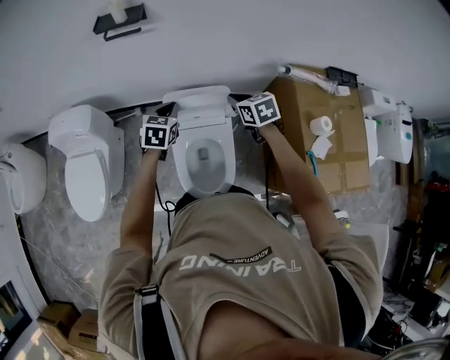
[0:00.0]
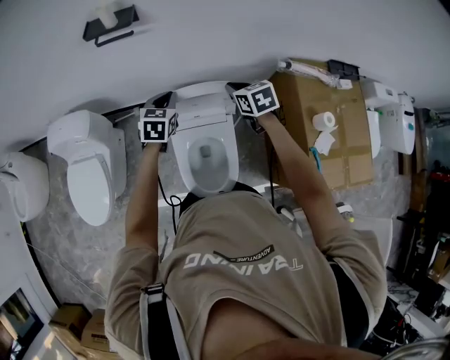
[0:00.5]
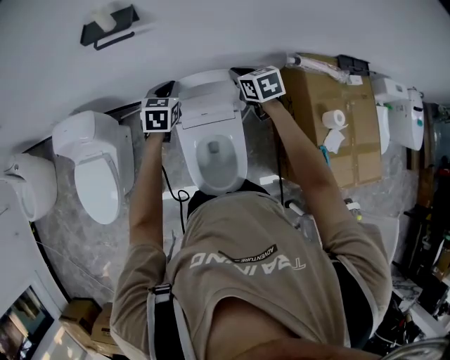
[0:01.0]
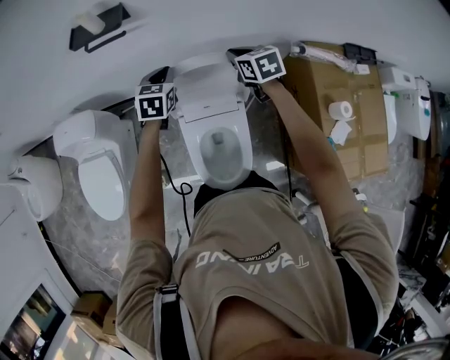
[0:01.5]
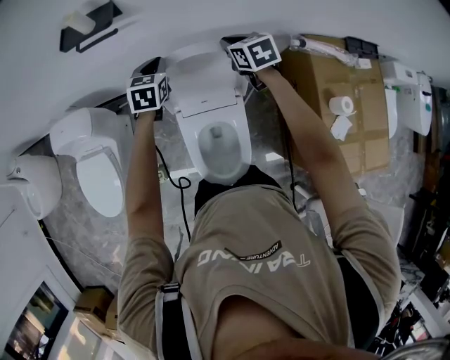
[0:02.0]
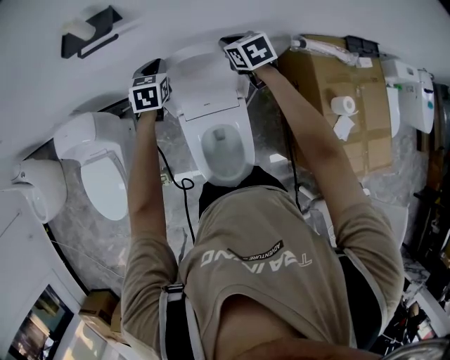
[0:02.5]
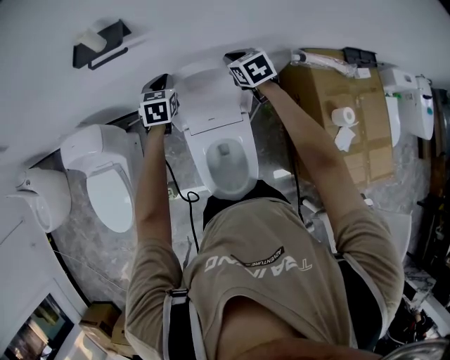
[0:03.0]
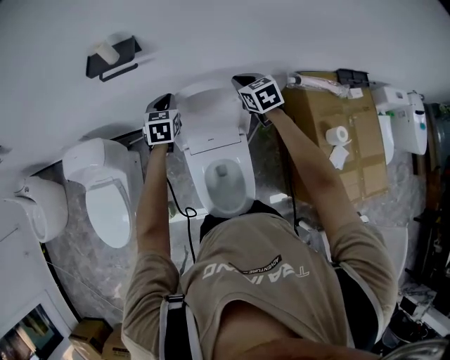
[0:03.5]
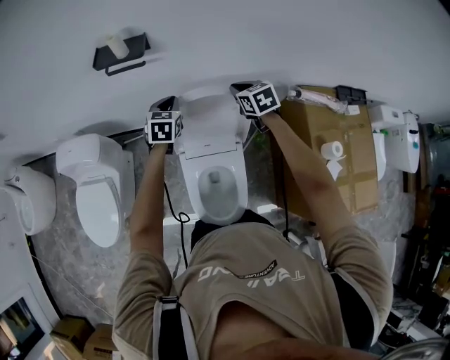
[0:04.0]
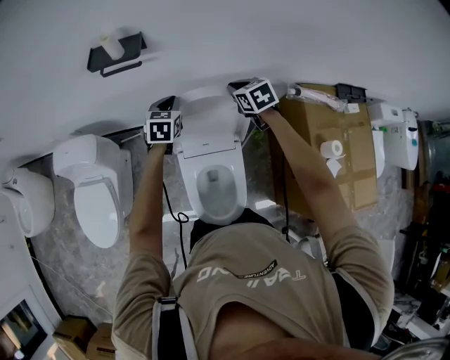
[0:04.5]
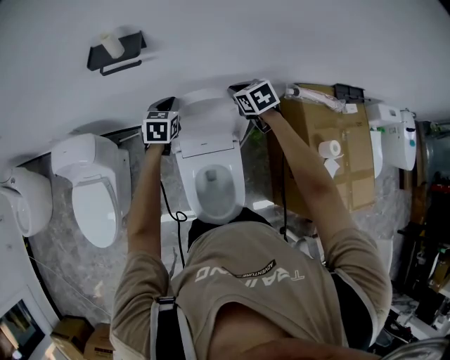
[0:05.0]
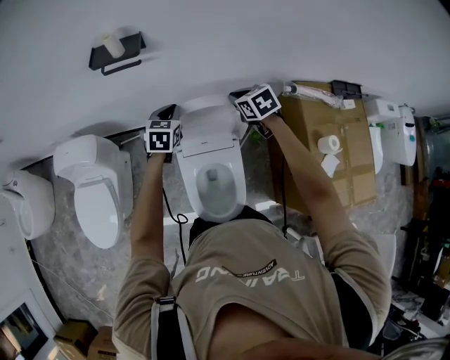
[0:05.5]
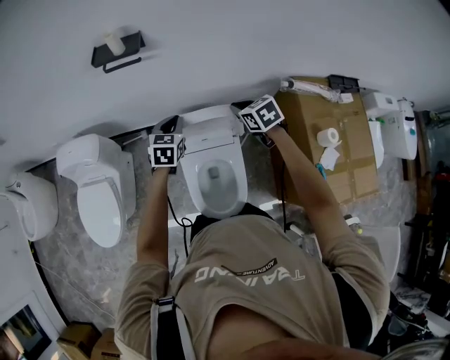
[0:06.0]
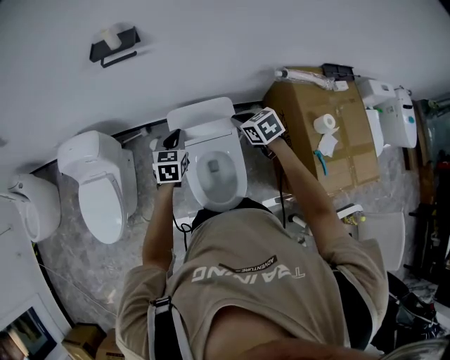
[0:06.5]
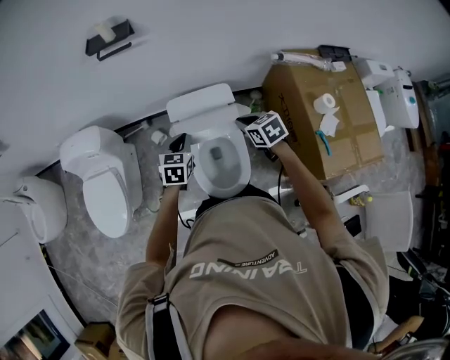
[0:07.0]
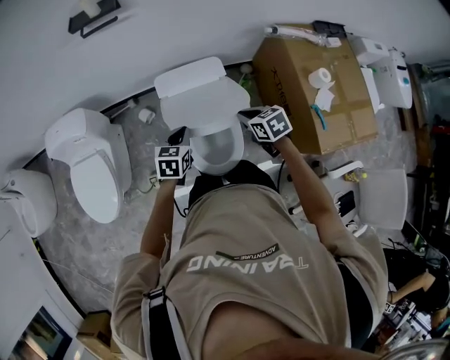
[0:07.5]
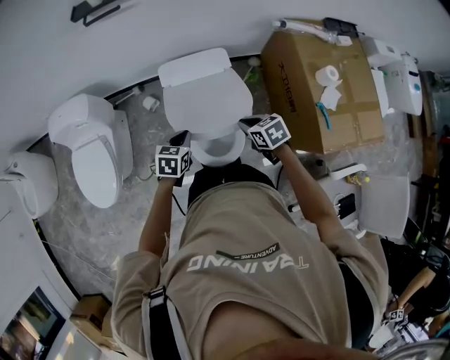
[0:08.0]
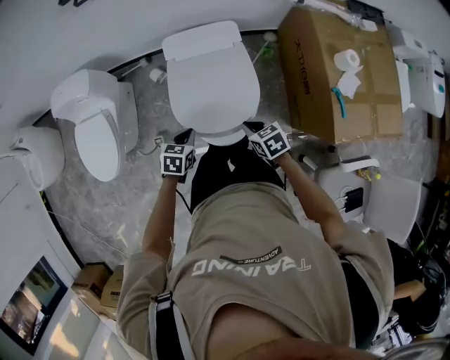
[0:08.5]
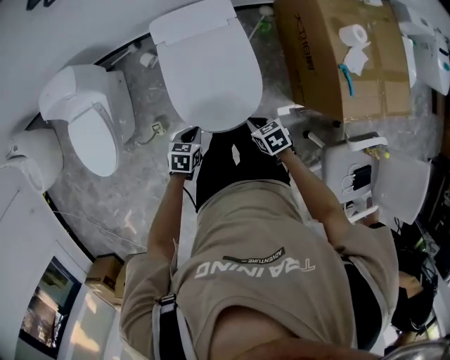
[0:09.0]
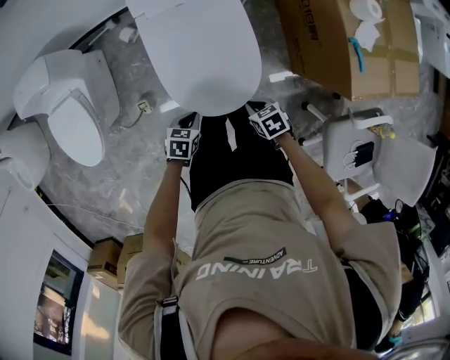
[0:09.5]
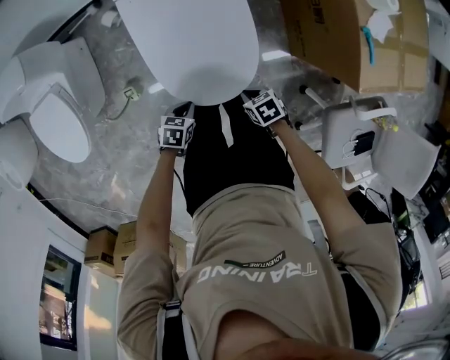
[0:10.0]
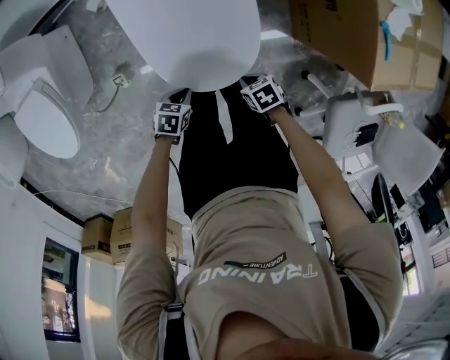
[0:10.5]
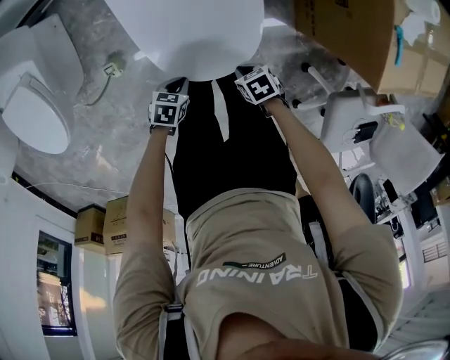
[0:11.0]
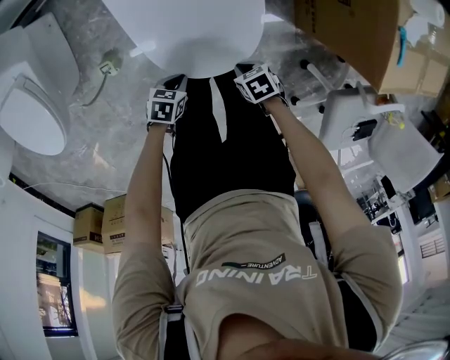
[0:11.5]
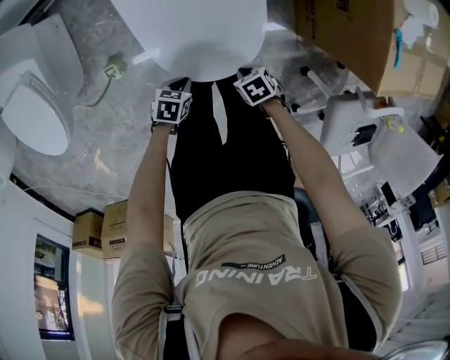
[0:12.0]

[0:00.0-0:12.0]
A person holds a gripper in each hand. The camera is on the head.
0:00.0 to 0:02.0: Both grippers travel together forward, roughly 20 cm.
0:02.0 to 0:04.0: The grippers move only a little.
0:04.0 to 0:06.0: The two grippers go approximately 10 cm backward.
0:06.0 to 0:08.0: The grippers both shift backward by roughly 30 cm. The left gripper changes its angle by about 20 degrees.
0:08.0 to 0:10.0: The grippers both shift downward by roughly 30 cm. The right gripper changes its angle by some 20 degrees. Meanwhile the left gripper swivels roughly 30 degrees.
0:10.0 to 0:12.0: The two grippers go some 10 cm downward.

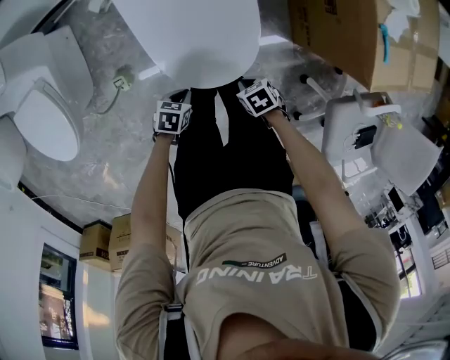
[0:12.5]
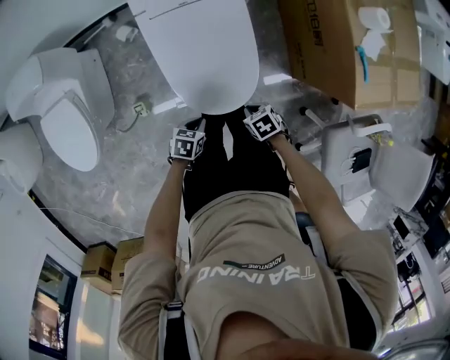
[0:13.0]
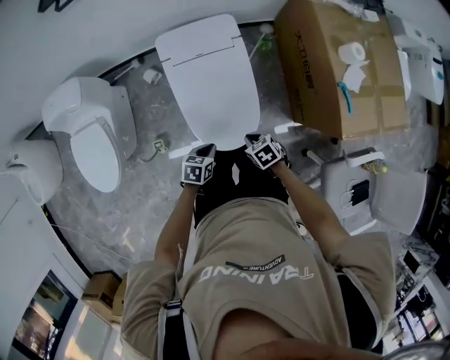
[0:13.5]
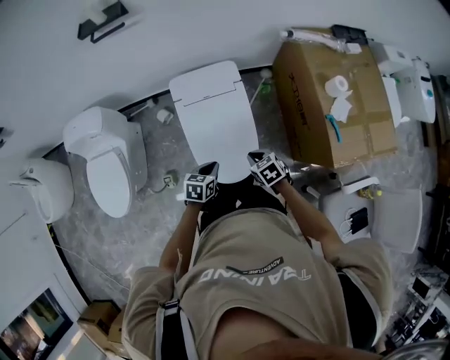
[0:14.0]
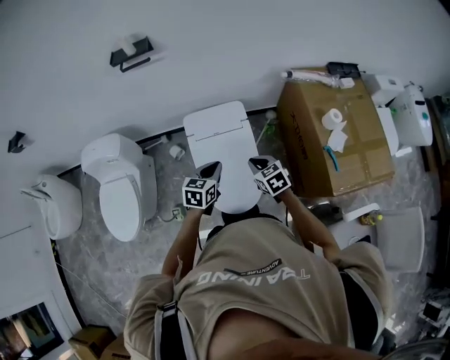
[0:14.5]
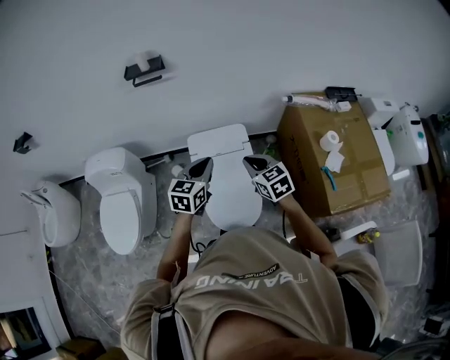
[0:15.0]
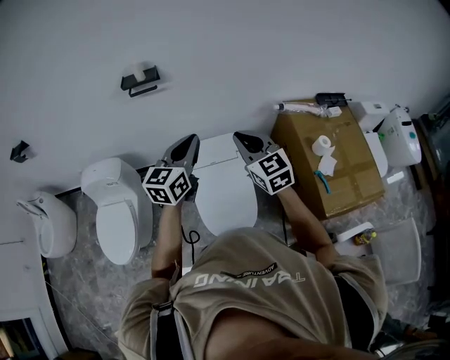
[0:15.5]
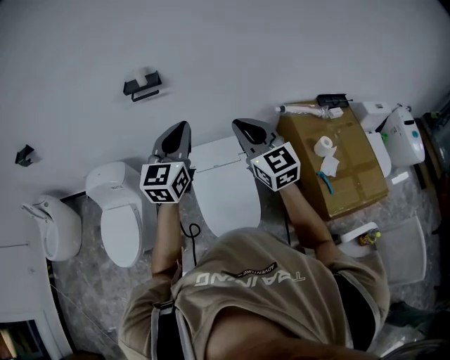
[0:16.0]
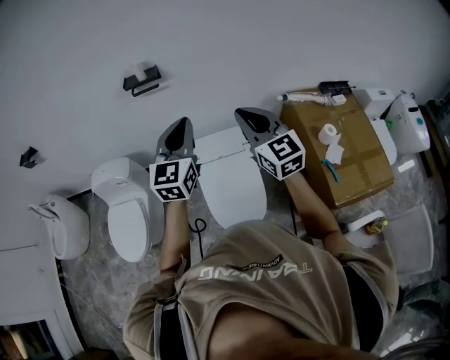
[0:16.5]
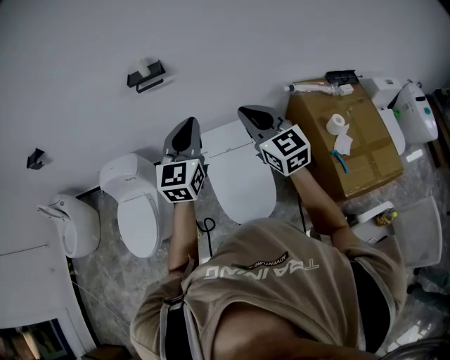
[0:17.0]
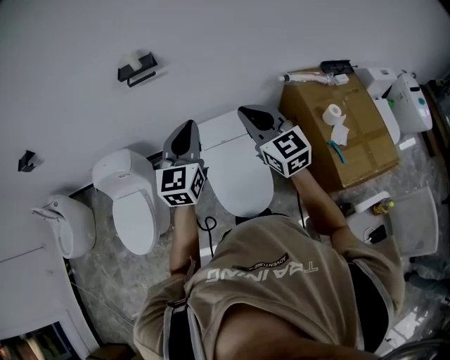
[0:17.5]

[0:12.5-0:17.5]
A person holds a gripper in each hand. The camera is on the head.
0:12.5 to 0:15.0: The grippers both shift upward by about 50 cm. The left gripper points its fingers some 40 degrees further upward, while the right gripper points its fingers approximately 40 degrees further upward.
0:15.0 to 0:17.5: The two grippers go about 15 cm upward. The right gripper turns by some 30 degrees, while the left gripper changes its angle by some 20 degrees.

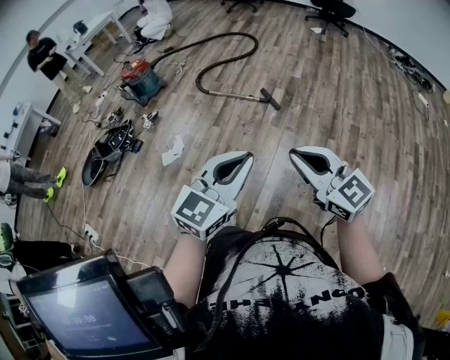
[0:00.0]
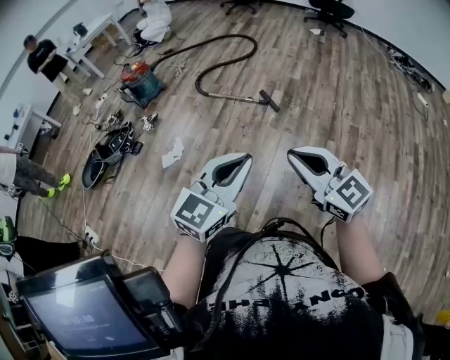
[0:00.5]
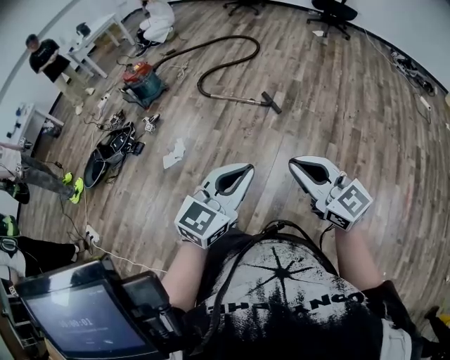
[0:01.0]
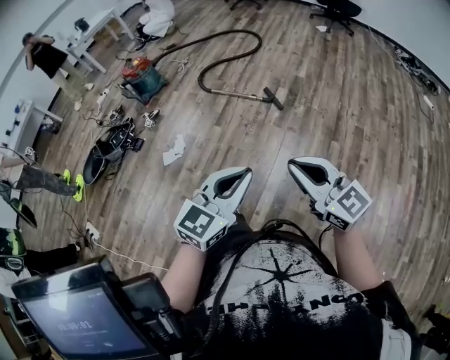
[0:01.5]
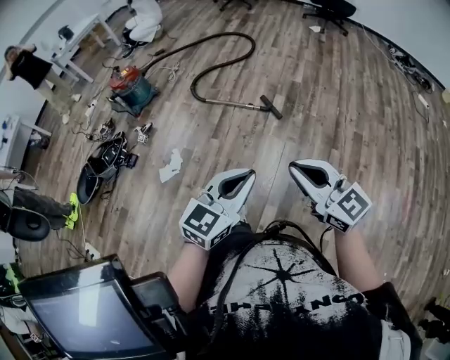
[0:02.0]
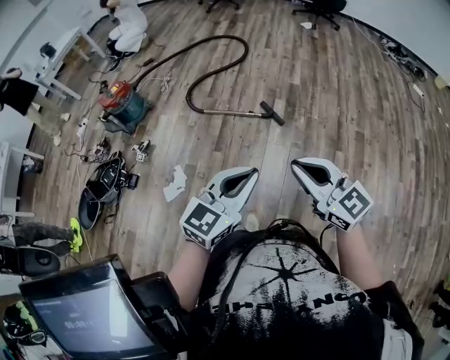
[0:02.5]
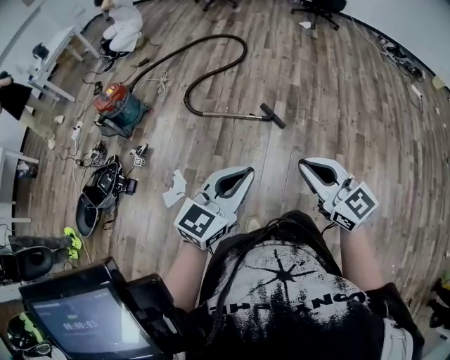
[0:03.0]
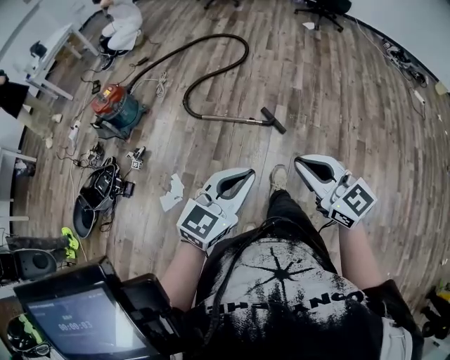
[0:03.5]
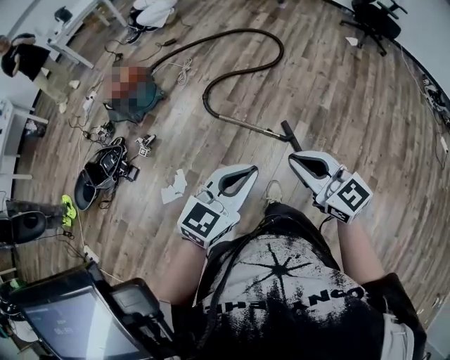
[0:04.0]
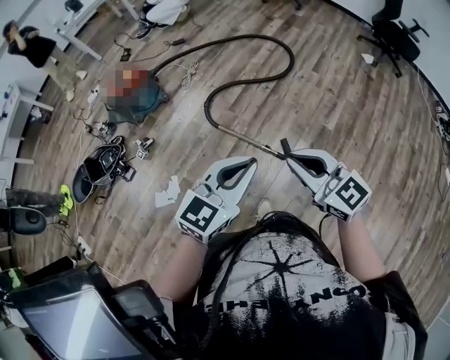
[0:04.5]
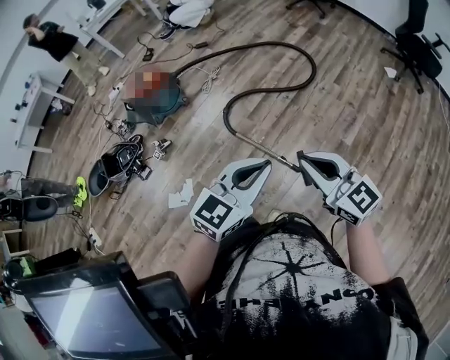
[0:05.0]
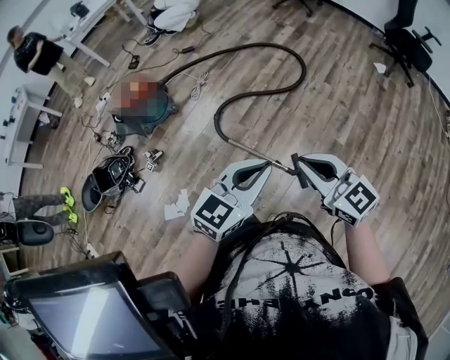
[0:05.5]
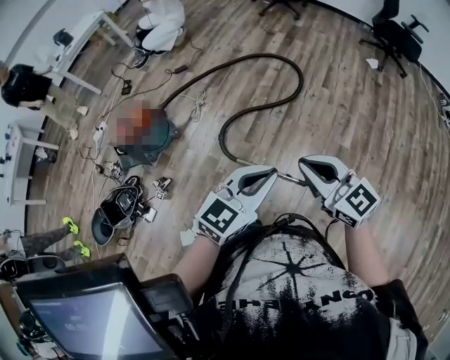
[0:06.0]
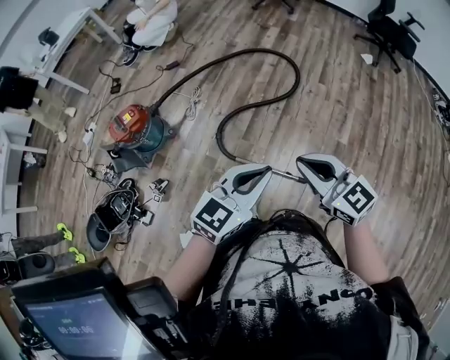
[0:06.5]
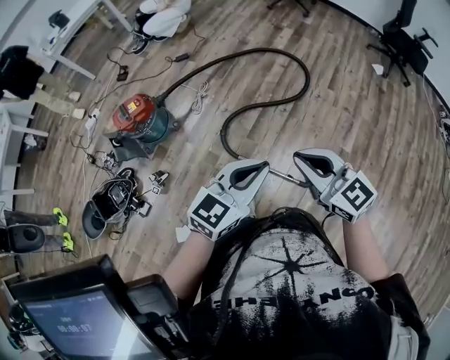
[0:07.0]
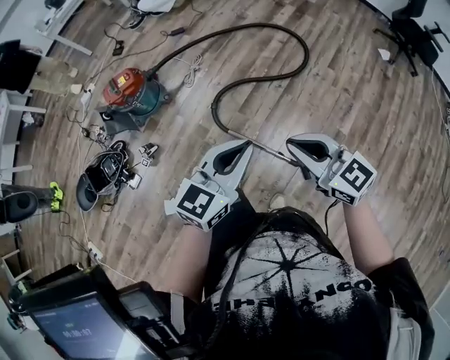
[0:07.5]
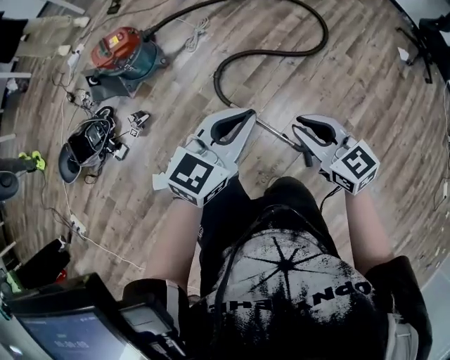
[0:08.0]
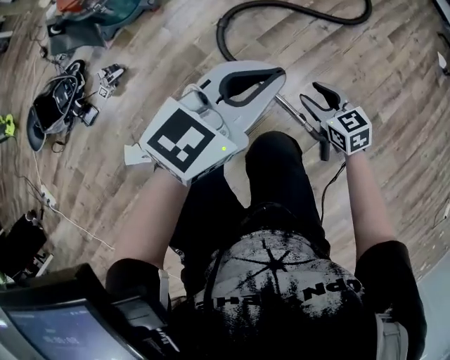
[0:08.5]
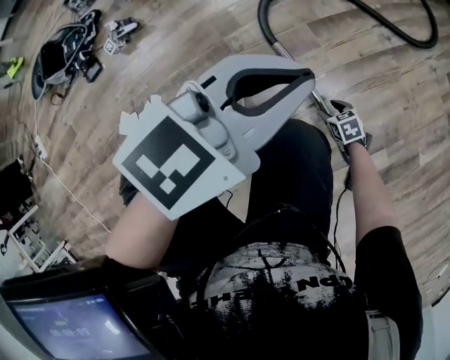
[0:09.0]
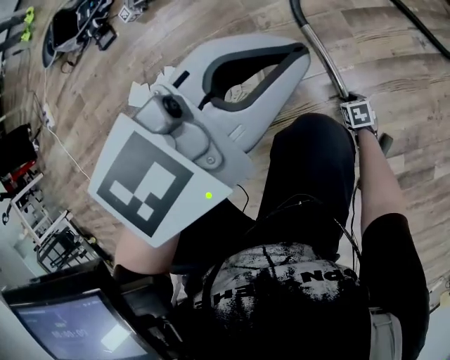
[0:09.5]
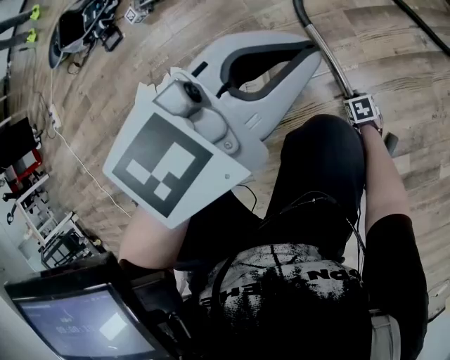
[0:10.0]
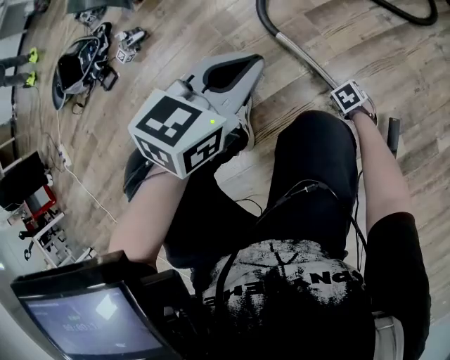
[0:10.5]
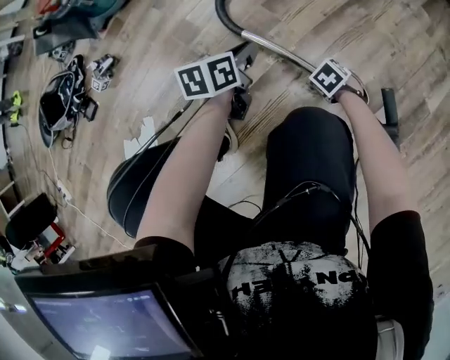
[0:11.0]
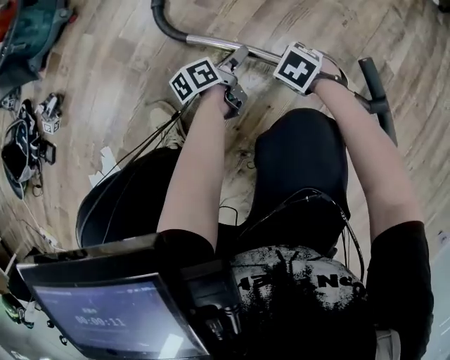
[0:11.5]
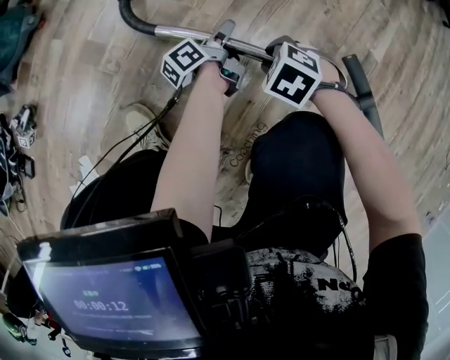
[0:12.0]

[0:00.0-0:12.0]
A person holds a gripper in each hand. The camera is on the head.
0:00.0 to 0:02.0: The left gripper heads forward and downward, covering roughly 15 cm. The right gripper goes some 15 cm forward.
0:02.0 to 0:04.0: The two grippers travel together, forward, about 40 cm.
0:04.0 to 0:06.0: Both grippers travel together forward, some 30 cm.
0:06.0 to 0:08.0: The right gripper heads downward, forward and to the left, covering some 20 cm, and swivels some 20 degrees; the left gripper shifts roughly 20 cm forward, to the left and downward, and rotates approximately 20 degrees.
0:08.0 to 0:10.0: The right gripper goes roughly 80 cm downward, points its fingers roughly 50 degrees further downward, and opens. Meanwhile the left gripper is displaced downward by about 40 cm.
0:10.0 to 0:12.0: The left gripper shifts some 40 cm downward, rolls counterclockwise, seen from behind, by about 80 degrees, and opens. The right gripper is displaced upward by approximately 15 cm.
